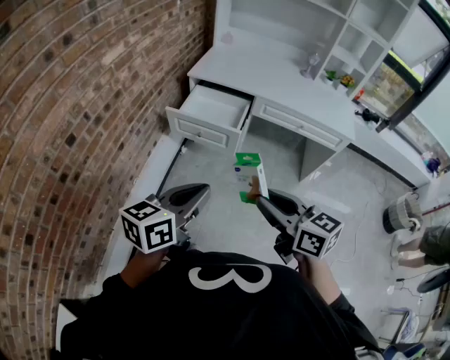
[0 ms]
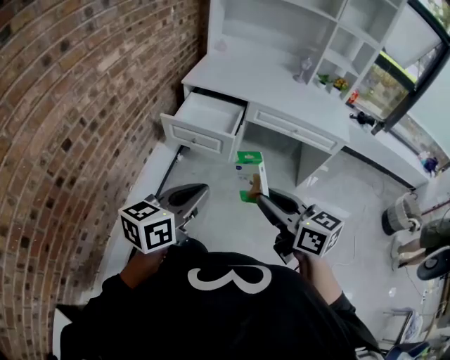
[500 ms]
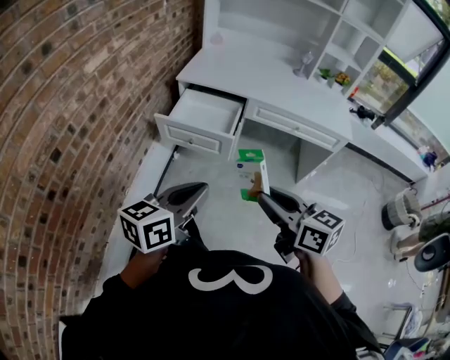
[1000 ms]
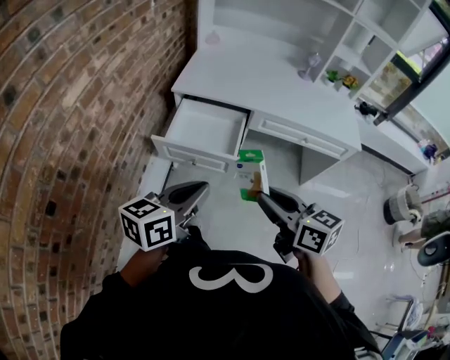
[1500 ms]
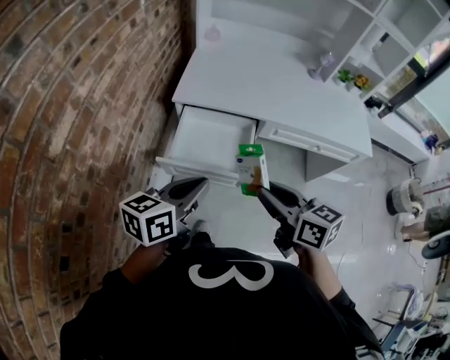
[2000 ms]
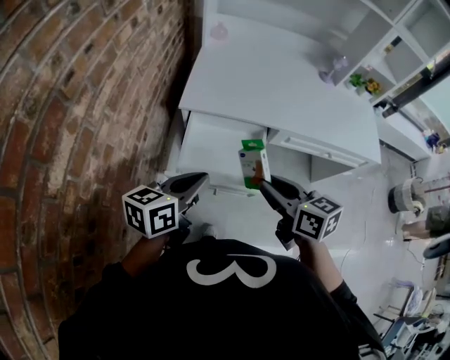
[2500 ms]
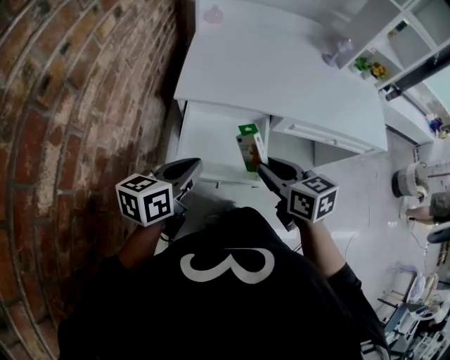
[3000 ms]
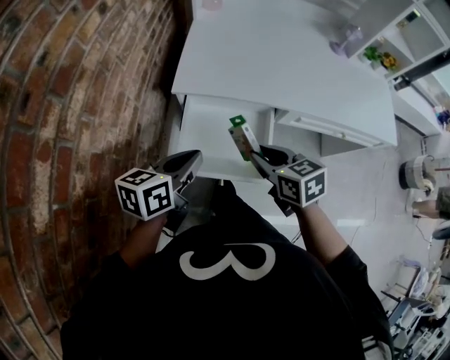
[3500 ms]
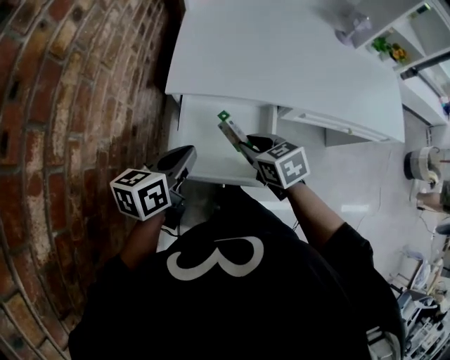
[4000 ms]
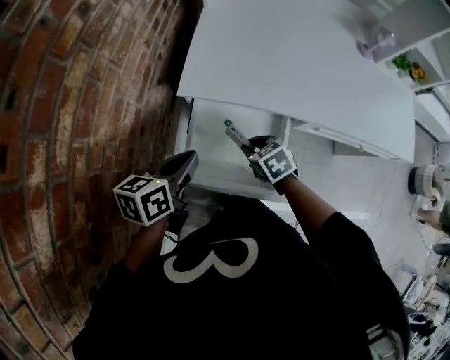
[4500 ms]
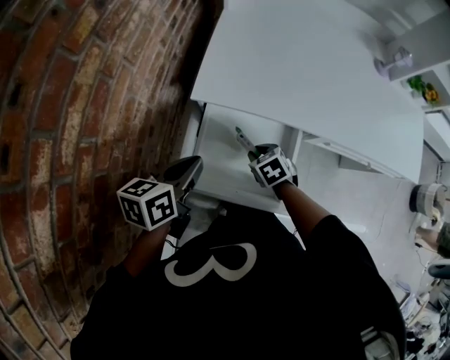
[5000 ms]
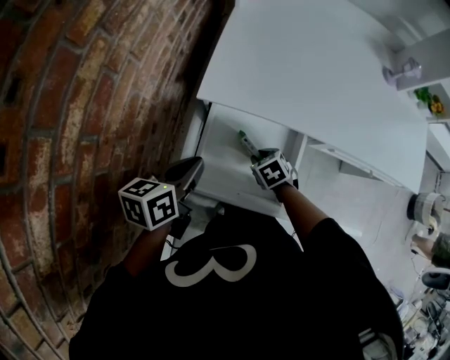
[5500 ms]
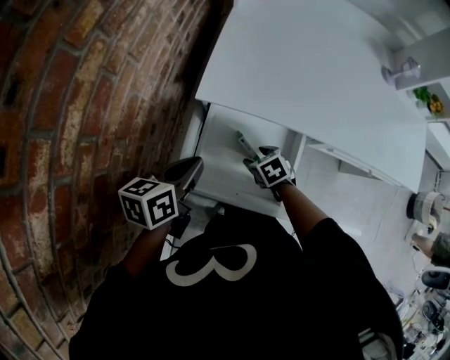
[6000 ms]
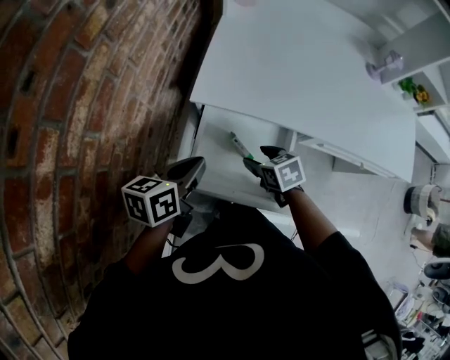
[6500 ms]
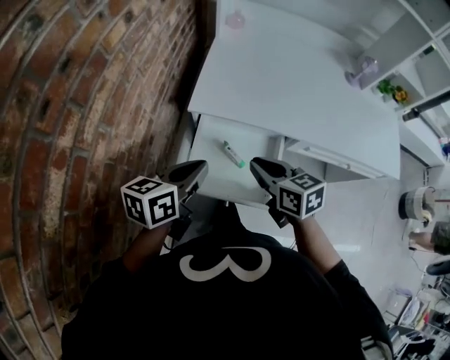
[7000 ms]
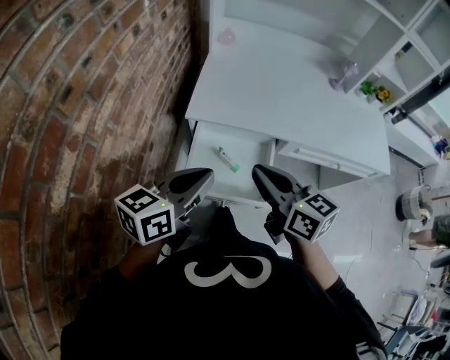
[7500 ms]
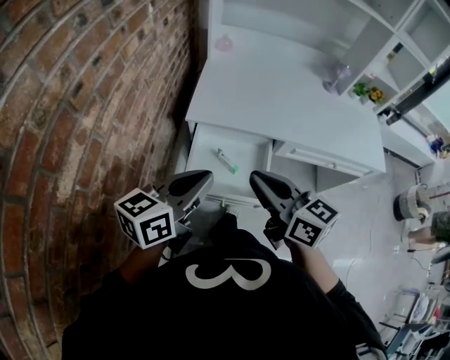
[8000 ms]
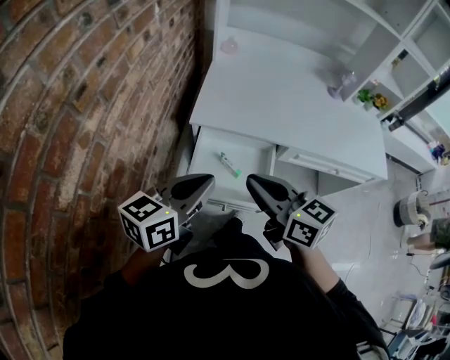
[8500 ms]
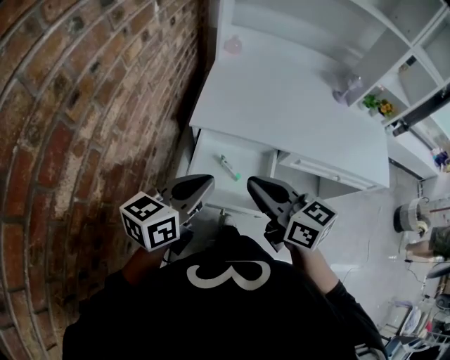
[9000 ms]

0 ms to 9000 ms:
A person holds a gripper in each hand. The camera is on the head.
0 ms to 2000 ms: Both grippers travel together forward, approximately 30 cm.
2000 ms to 4500 ms: The right gripper is displaced downward and forward by approximately 35 cm, and points its fingers about 40 degrees further downward, while the left gripper travels forward, downward and to the left by some 25 cm.
4500 ms to 7000 ms: The right gripper is displaced upward by some 15 cm, changes its angle by about 30 degrees, and opens, then closes again. The left gripper heads upward, covering some 5 cm.
7000 ms to 9000 ms: The right gripper goes approximately 15 cm upward and backward, and changes its angle by roughly 20 degrees, while the left gripper heads upward, covering roughly 10 cm.

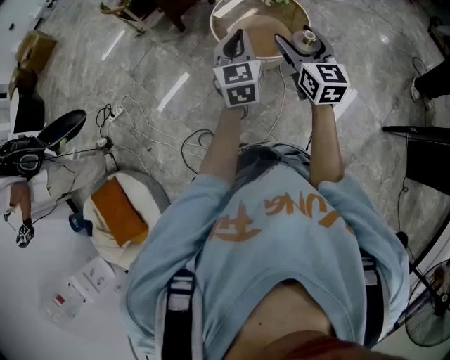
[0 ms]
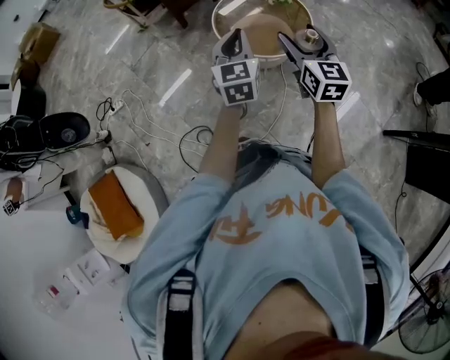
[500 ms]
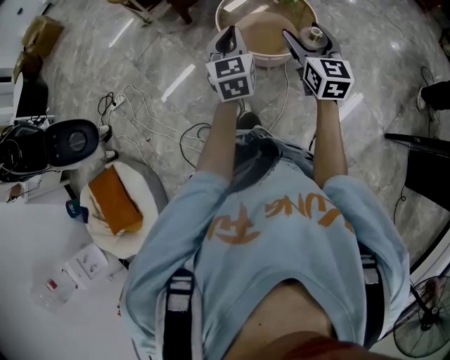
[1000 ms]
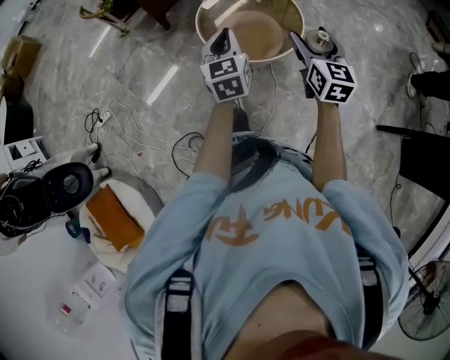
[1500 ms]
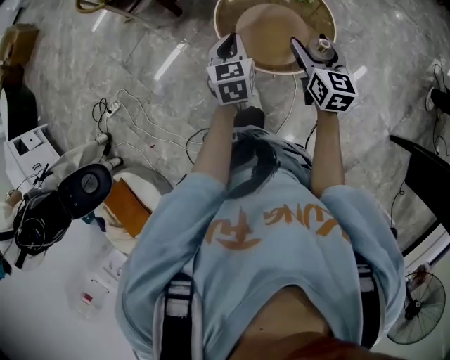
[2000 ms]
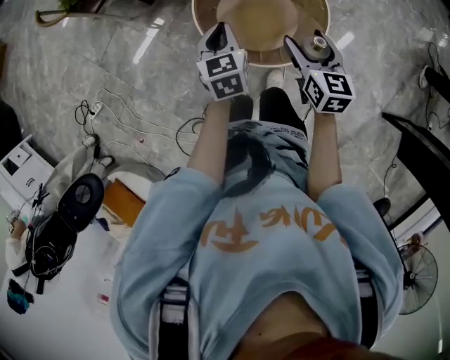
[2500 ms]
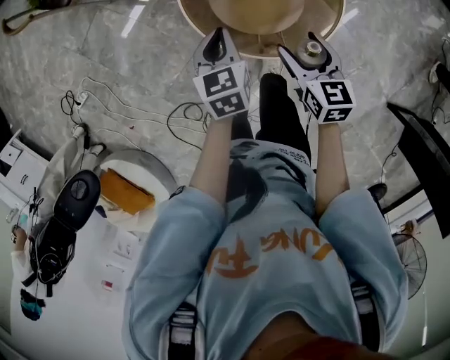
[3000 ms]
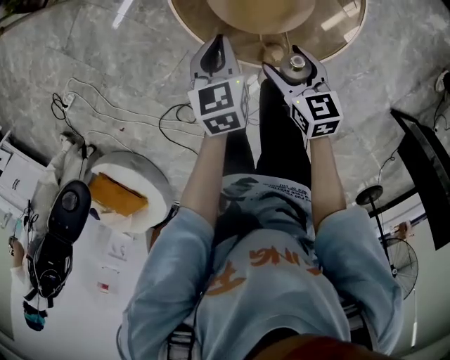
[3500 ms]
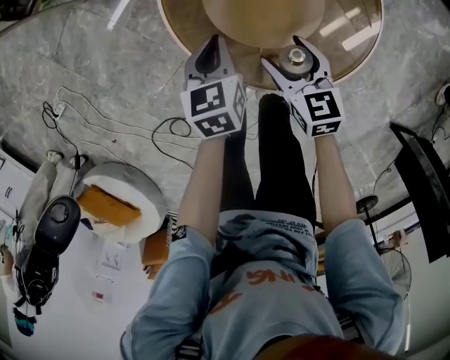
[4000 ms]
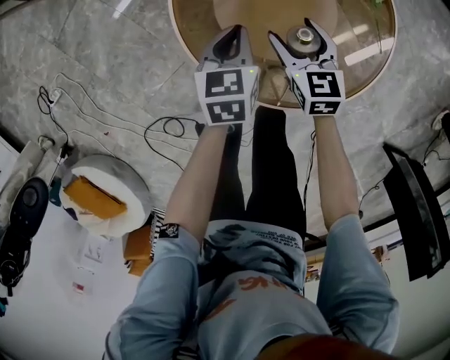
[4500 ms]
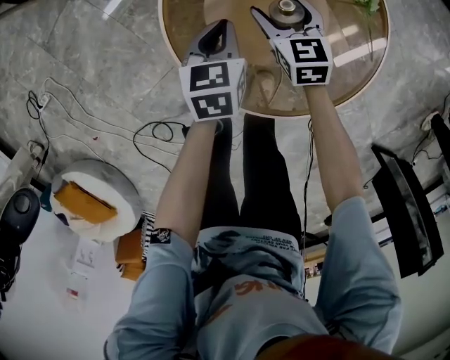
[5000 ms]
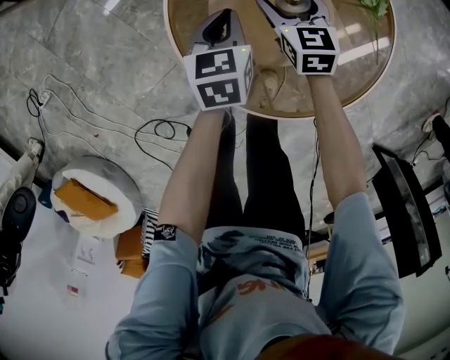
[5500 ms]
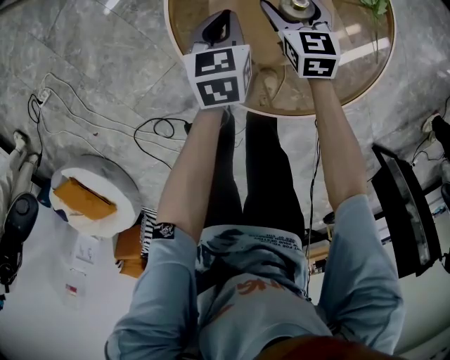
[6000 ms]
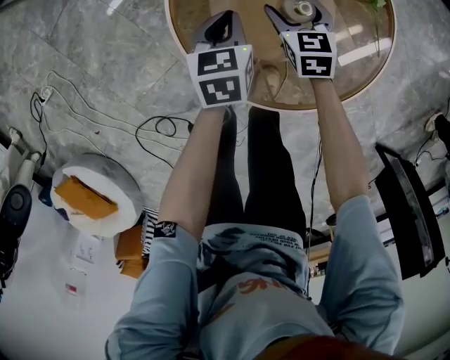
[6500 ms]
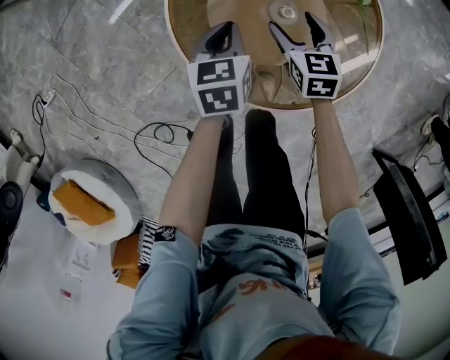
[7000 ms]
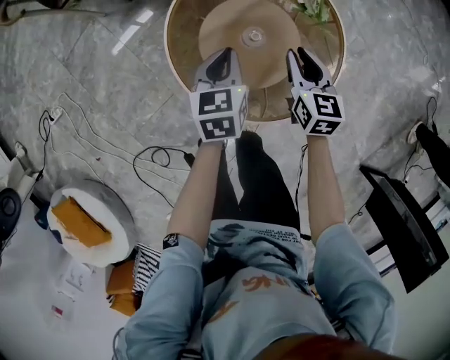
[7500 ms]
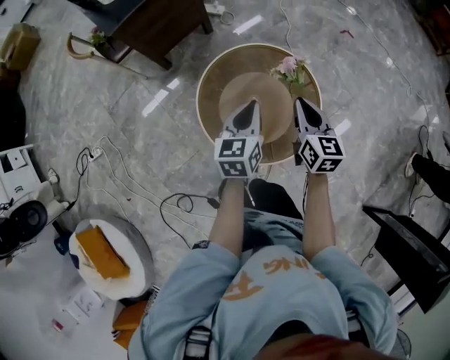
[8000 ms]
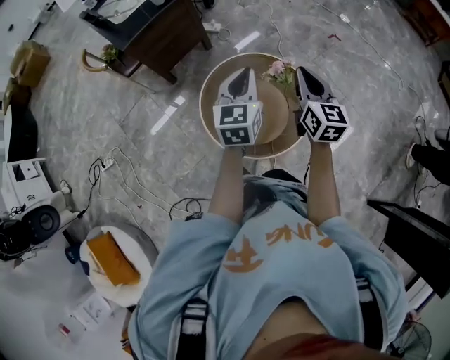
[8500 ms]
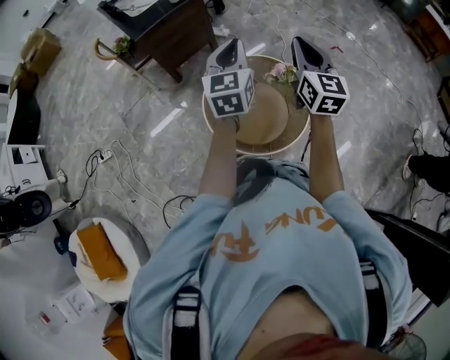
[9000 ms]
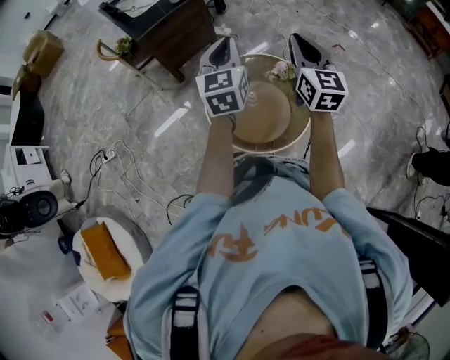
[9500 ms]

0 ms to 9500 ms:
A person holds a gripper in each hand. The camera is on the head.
0 ms to 2000 ms: The two grippers go roughly 30 cm forward and downward. The left gripper rotates roughly 20 degrees.
2000 ms to 4000 ms: Both grippers travel together downward, some 35 cm. The right gripper turns by approximately 30 degrees. Meanwhile the left gripper turns by about 20 degrees.
4000 ms to 5500 ms: The left gripper is displaced forward by approximately 10 cm. The right gripper goes about 20 cm forward.
5500 ms to 7500 ms: The right gripper heads upward, backward and to the right, covering approximately 25 cm, and closes up, while the left gripper goes about 15 cm upward and backward.
7500 ms to 9500 ms: Both grippers travel together upward, some 40 cm. The right gripper rotates roughly 30 degrees; the left gripper angles its fingers upward, by approximately 30 degrees.

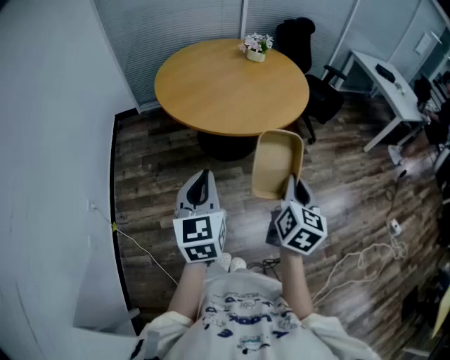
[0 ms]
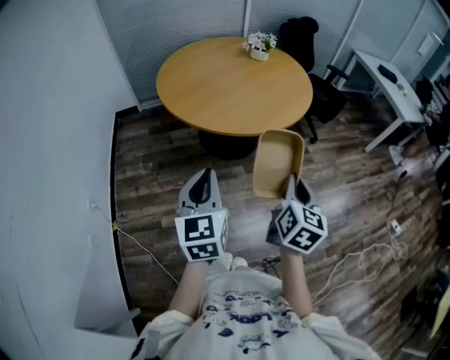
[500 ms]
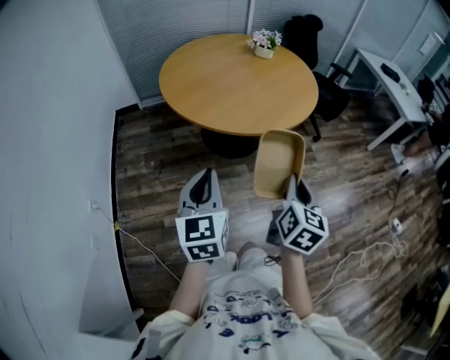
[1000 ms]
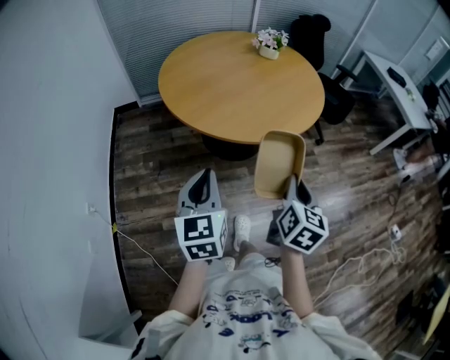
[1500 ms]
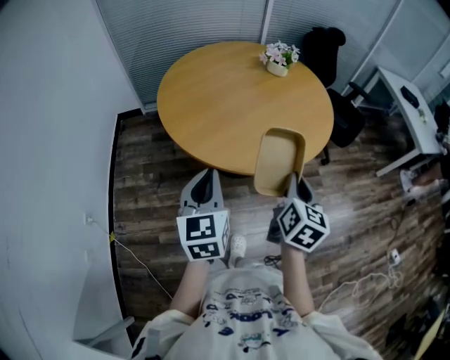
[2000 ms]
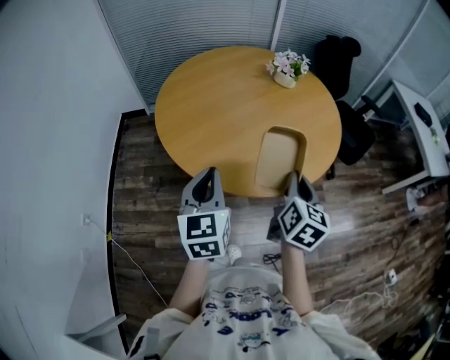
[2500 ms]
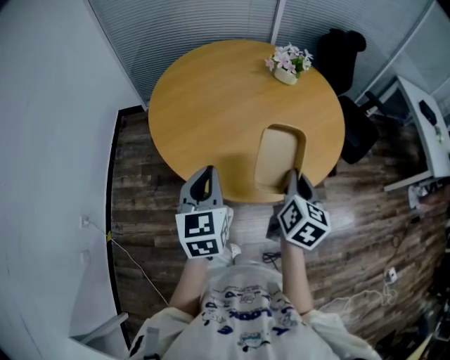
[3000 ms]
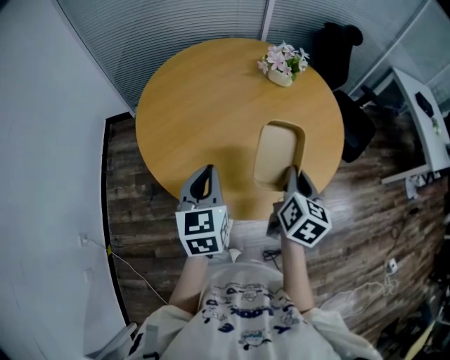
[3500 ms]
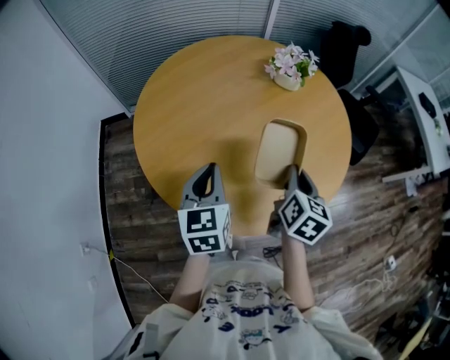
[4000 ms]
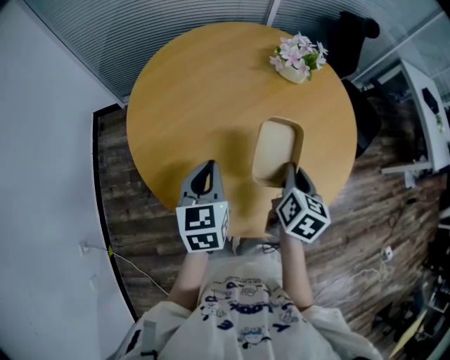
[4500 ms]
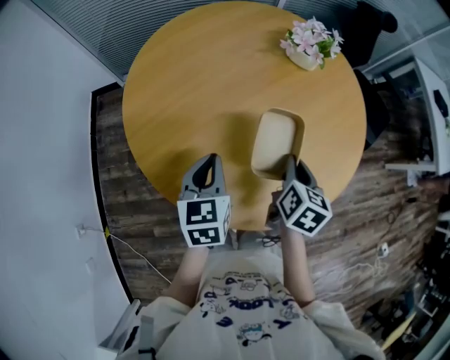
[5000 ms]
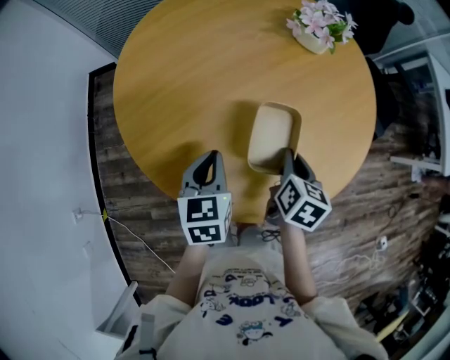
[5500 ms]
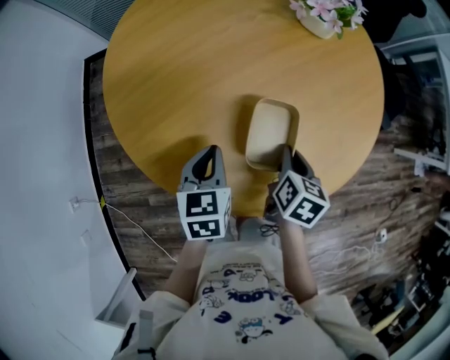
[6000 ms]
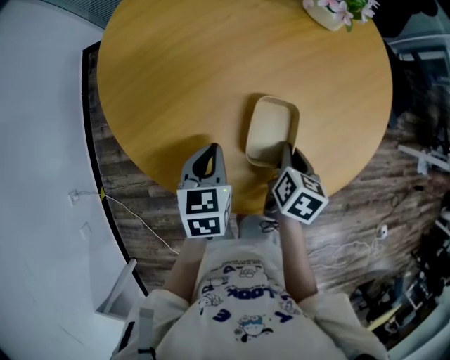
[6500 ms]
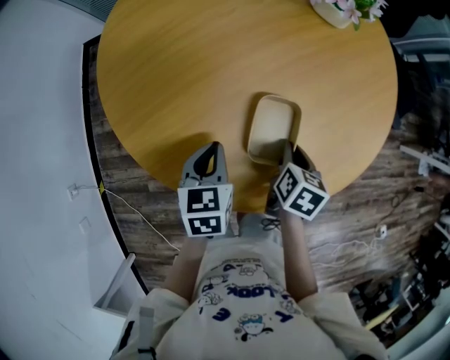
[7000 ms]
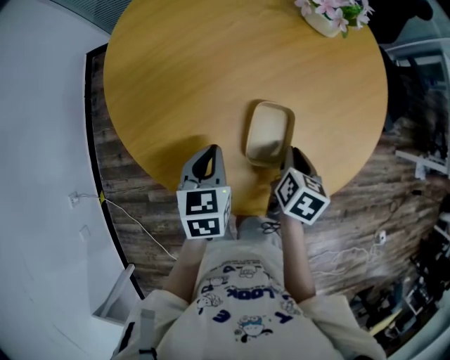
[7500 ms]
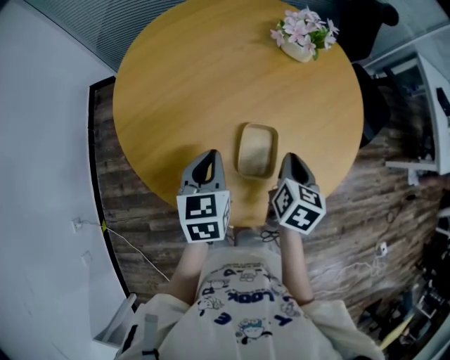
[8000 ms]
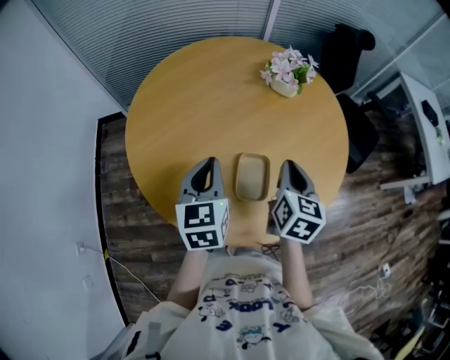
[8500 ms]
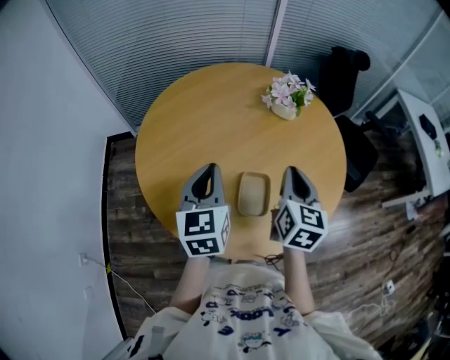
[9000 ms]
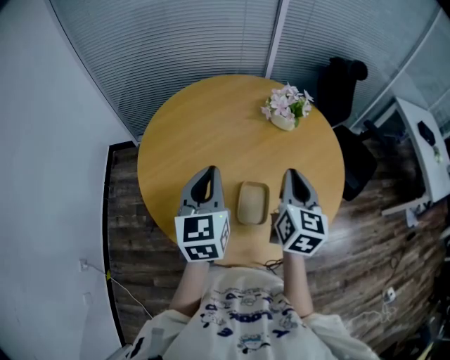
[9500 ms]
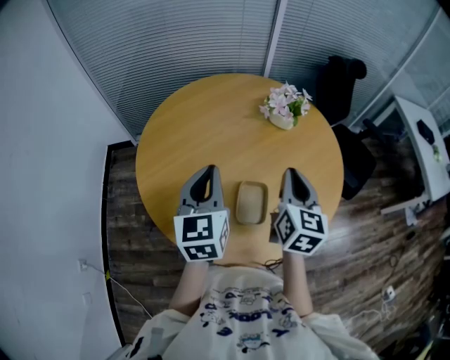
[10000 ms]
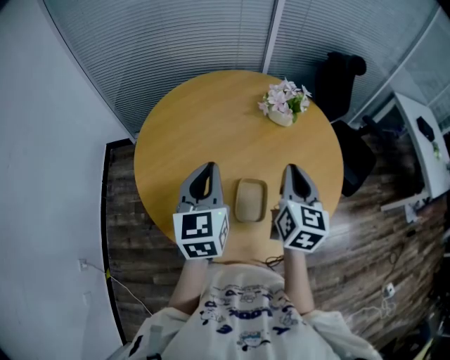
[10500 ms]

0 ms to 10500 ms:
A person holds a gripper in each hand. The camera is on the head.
0 ms to 2000 ms: The two grippers go some 20 cm forward.
2000 ms to 4000 ms: Both grippers move forward, some 30 cm.
4000 ms to 6500 ms: The grippers both shift downward by about 20 cm. The left gripper swivels about 20 degrees. Meanwhile the right gripper turns by about 30 degrees.
6500 ms to 8500 ms: Both grippers move upward, roughly 20 cm. The right gripper turns by about 30 degrees; the left gripper swivels about 20 degrees.
8500 ms to 10500 ms: Both grippers travel together upward, some 10 cm.
